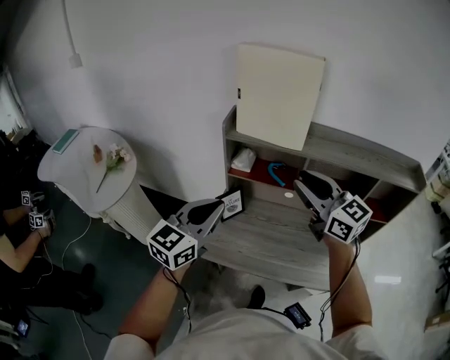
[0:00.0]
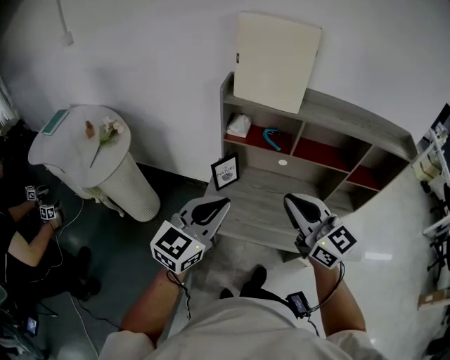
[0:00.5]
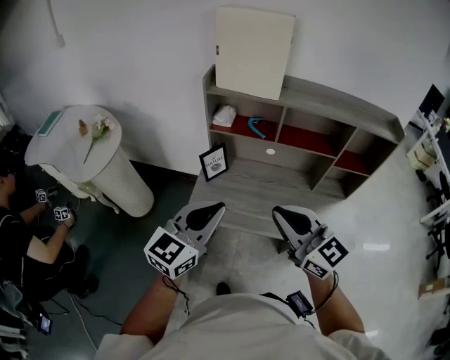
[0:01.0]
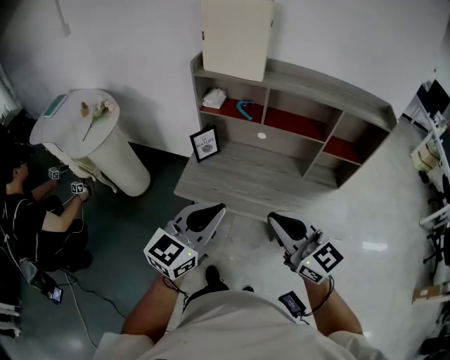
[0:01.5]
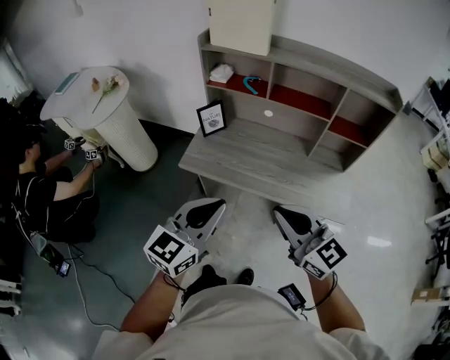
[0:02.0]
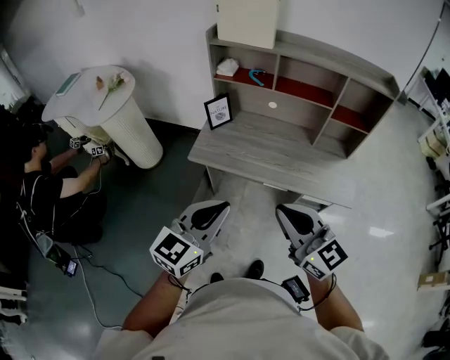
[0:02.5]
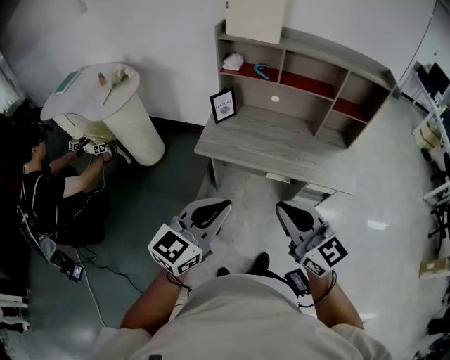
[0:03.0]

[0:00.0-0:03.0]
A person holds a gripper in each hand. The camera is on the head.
0:00.0 to 0:01.5: The left gripper heads backward and to the right, covering about 25 cm. The right gripper travels backward by roughly 30 cm.
0:01.5 to 0:03.0: Both grippers travel together backward and to the left, approximately 20 cm.

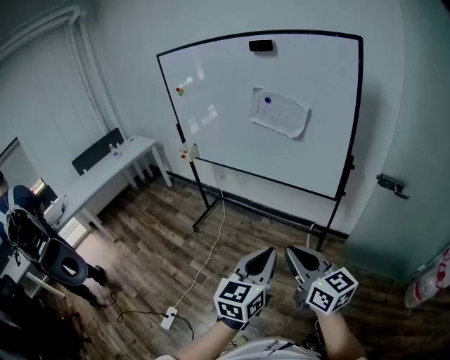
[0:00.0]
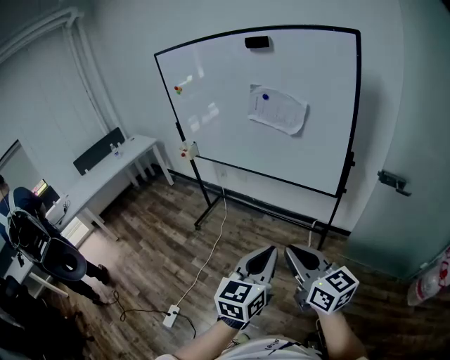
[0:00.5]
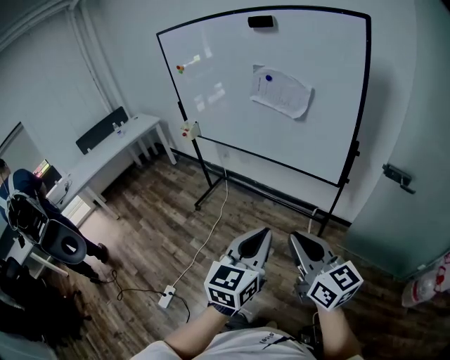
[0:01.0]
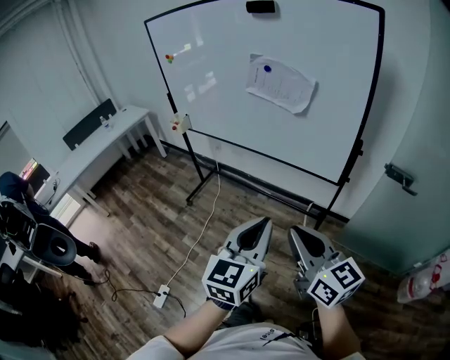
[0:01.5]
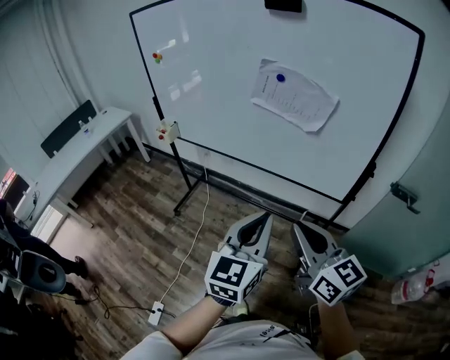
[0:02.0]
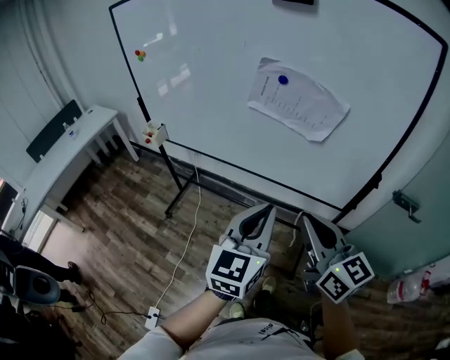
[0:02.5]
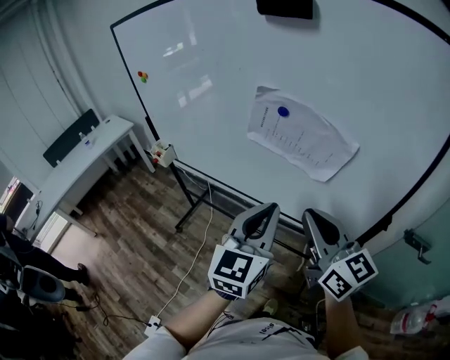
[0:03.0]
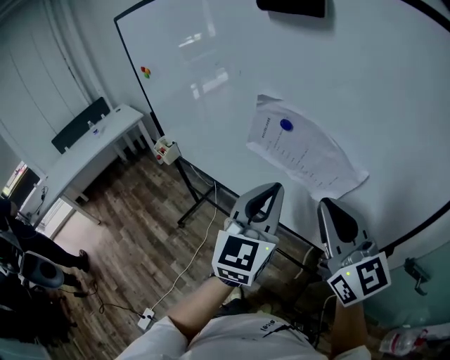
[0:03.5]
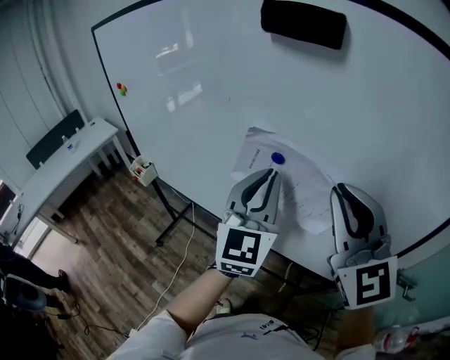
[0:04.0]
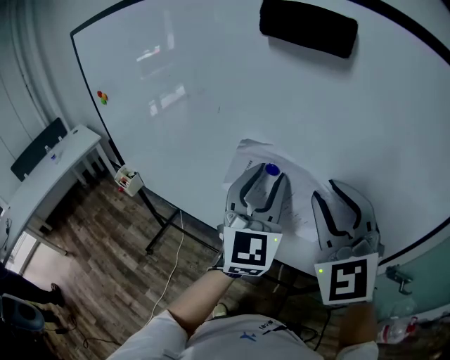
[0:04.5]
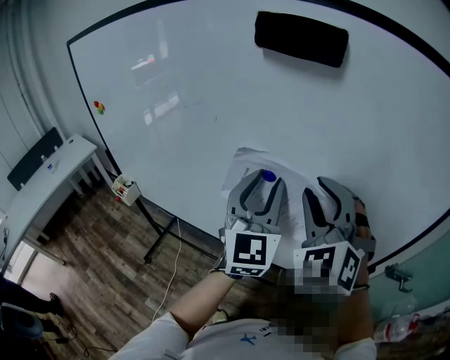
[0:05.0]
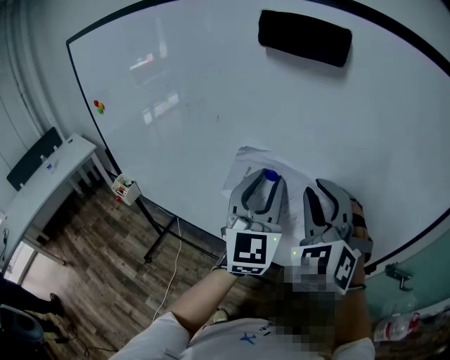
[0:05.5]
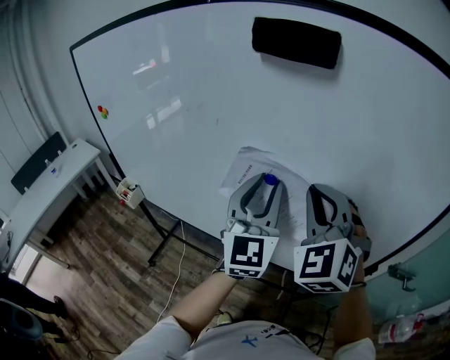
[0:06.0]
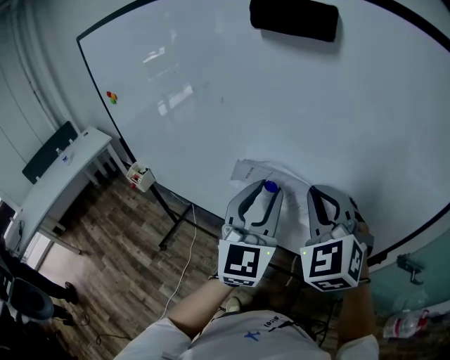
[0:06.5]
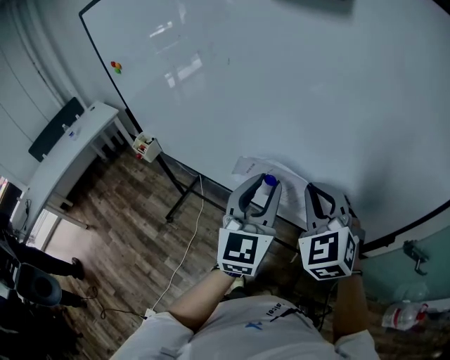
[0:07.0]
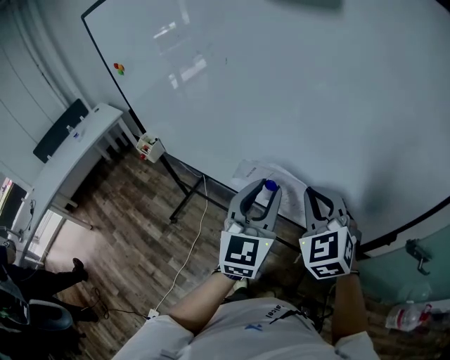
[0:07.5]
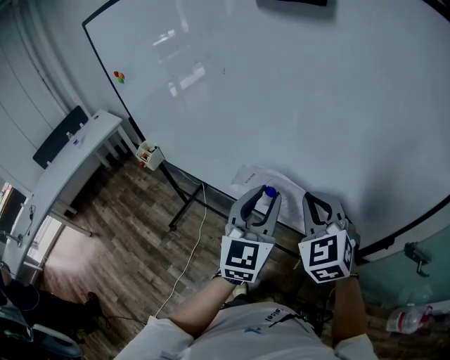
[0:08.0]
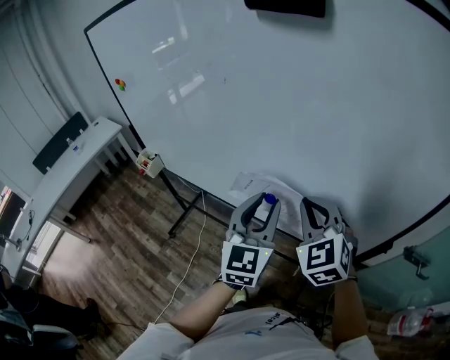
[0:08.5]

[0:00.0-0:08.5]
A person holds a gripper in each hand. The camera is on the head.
0:00.0 to 0:02.0: The two grippers go about 25 cm forward.
0:02.0 to 0:04.0: The left gripper shifts some 40 cm forward, and changes its angle by about 20 degrees; the right gripper travels forward and upward by approximately 40 cm, and rotates around the line of its fingers by some 40 degrees, counterclockwise from behind.
0:04.0 to 0:06.5: The left gripper opens, while the right gripper shifts about 10 cm downward, turns by approximately 30 degrees, and opens, then closes once more.
0:06.5 to 0:08.5: Both grippers travel together downward, roughly 10 cm.

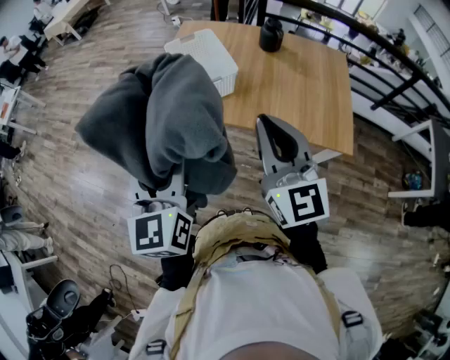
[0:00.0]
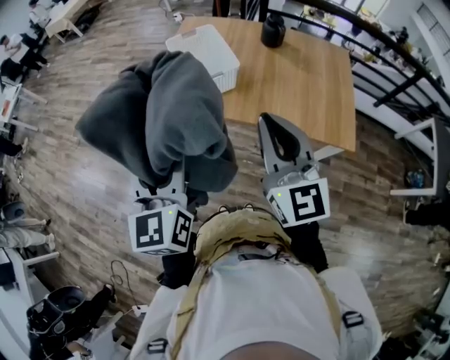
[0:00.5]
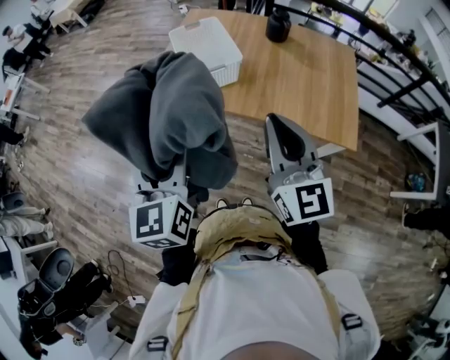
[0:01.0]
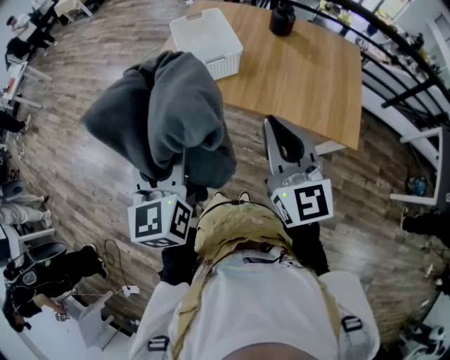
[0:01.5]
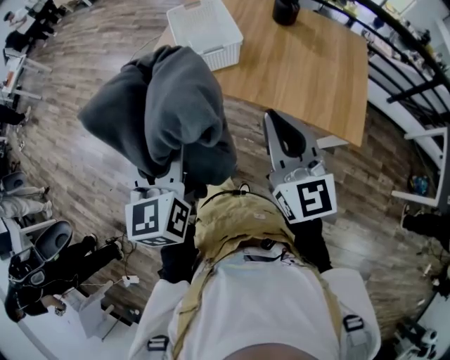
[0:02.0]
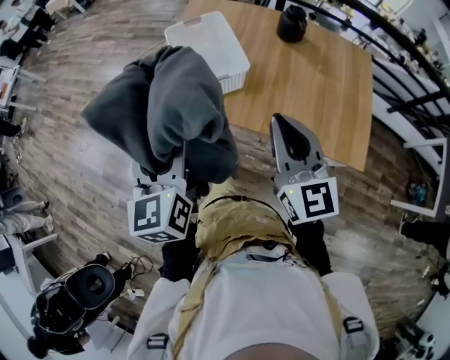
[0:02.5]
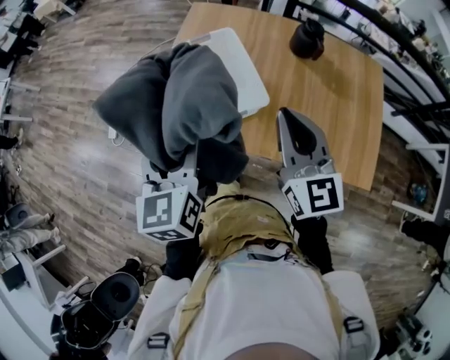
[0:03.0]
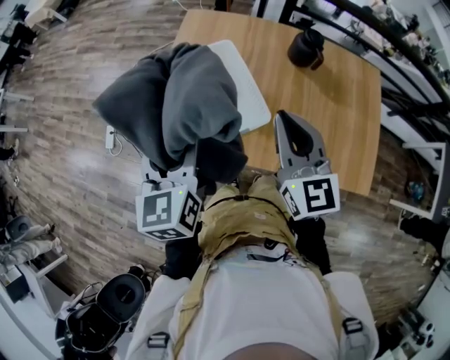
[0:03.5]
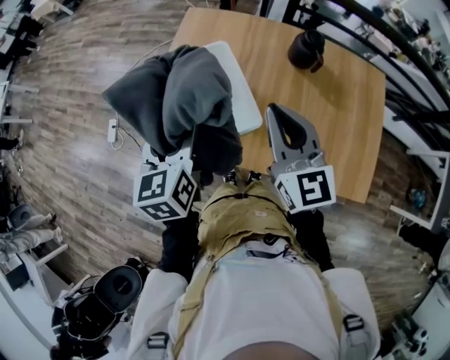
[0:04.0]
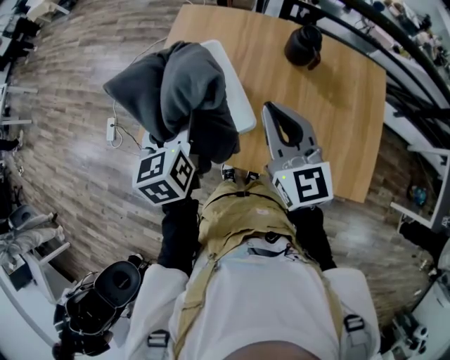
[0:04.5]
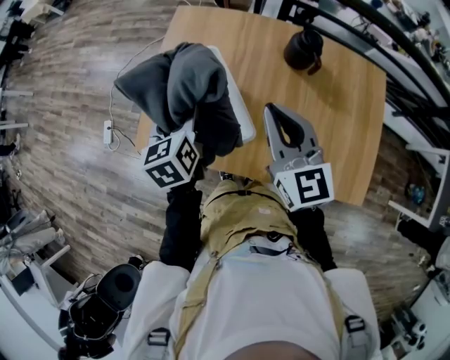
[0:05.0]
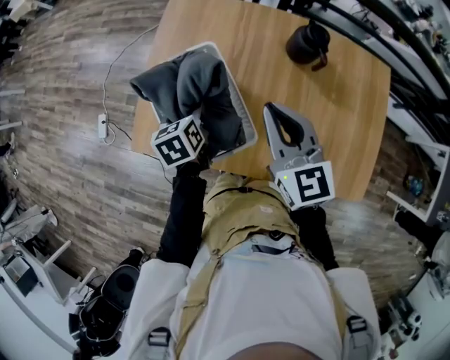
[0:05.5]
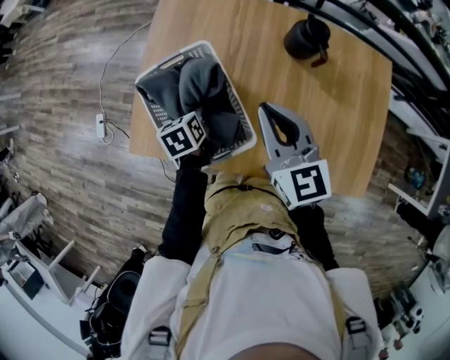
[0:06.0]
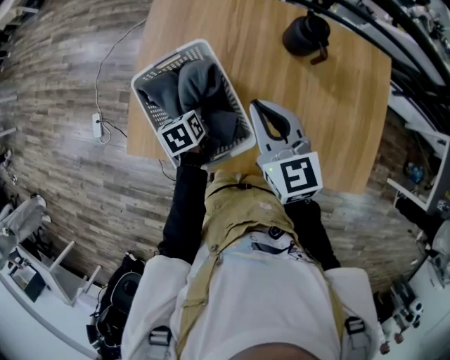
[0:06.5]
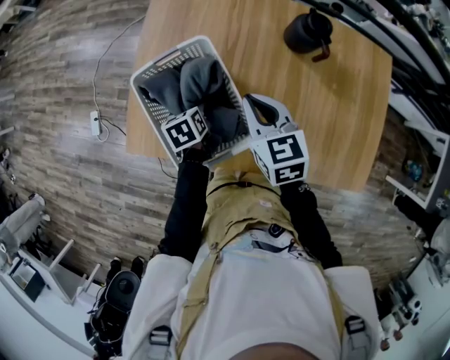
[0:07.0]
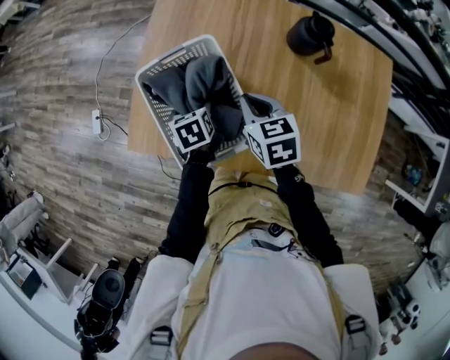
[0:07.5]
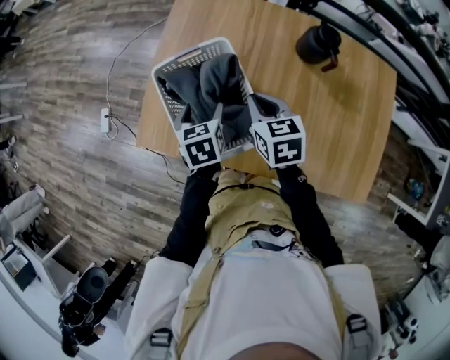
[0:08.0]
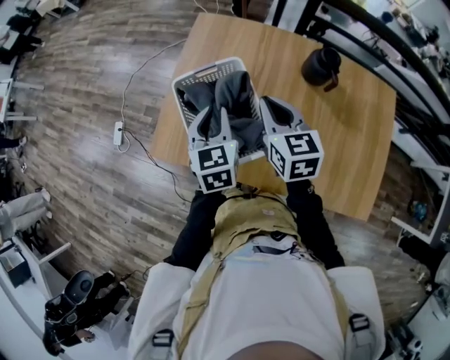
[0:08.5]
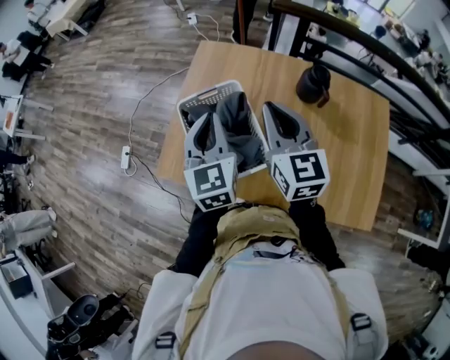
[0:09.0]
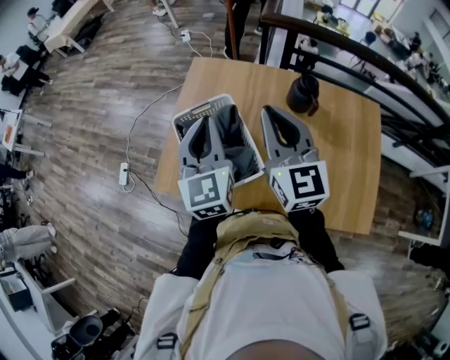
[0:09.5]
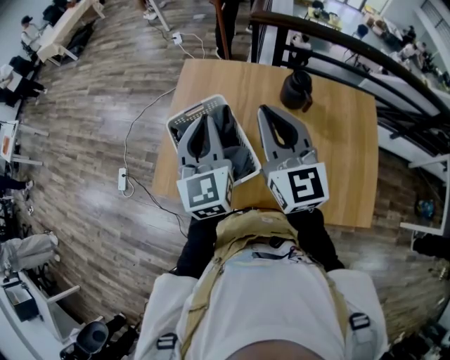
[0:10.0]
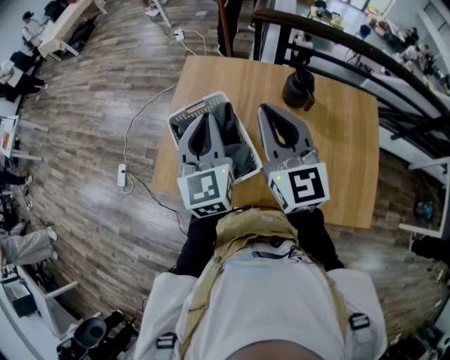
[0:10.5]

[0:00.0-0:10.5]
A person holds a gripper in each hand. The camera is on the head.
0:00.0 to 0:02.0: Both grippers move downward, approximately 5 cm.
0:02.0 to 0:04.0: Both grippers travel together forward, approximately 35 cm.
0:04.0 to 0:06.5: The right gripper goes about 15 cm downward and forward. Meanwhile the left gripper shifts about 30 cm downward and forward, and tilts its fingers roughly 30 degrees downward.
0:06.5 to 0:08.5: The right gripper reaches roughly 10 cm downward, then returns; the left gripper is displaced upward by some 20 cm, swivels about 30 degrees, and closes up.
0:08.5 to 0:10.5: The two grippers go some 15 cm upward. The left gripper rotates roughly 20 degrees. The right gripper swivels roughly 30 degrees.

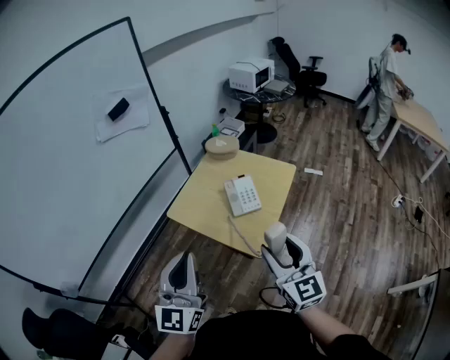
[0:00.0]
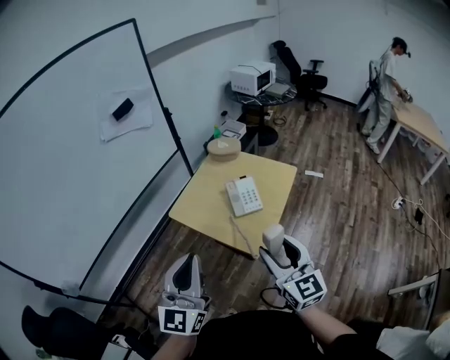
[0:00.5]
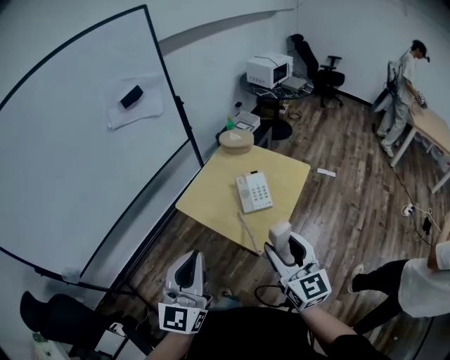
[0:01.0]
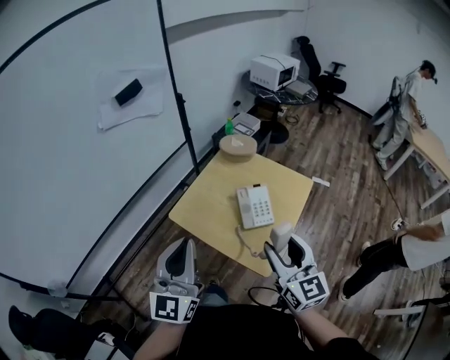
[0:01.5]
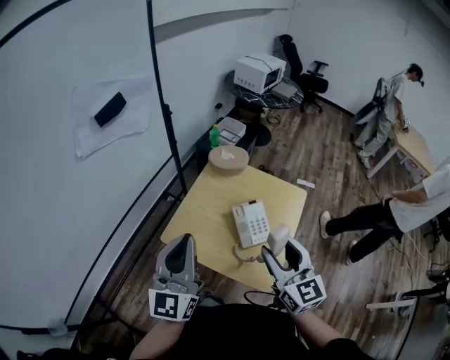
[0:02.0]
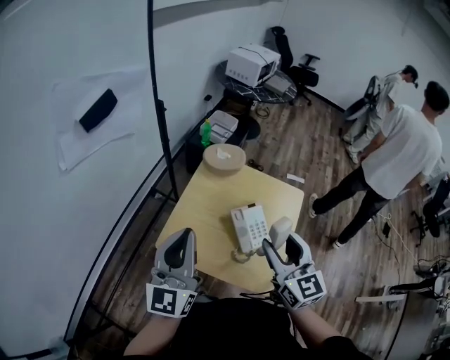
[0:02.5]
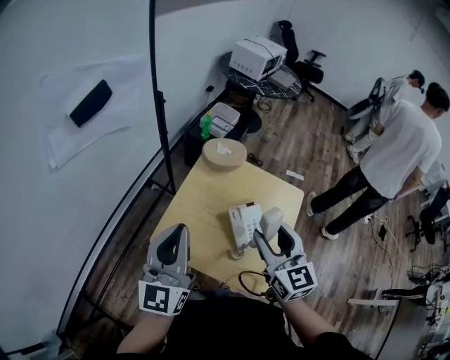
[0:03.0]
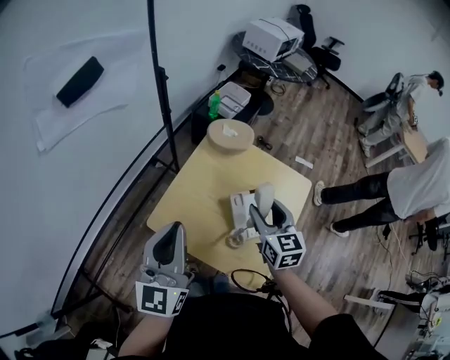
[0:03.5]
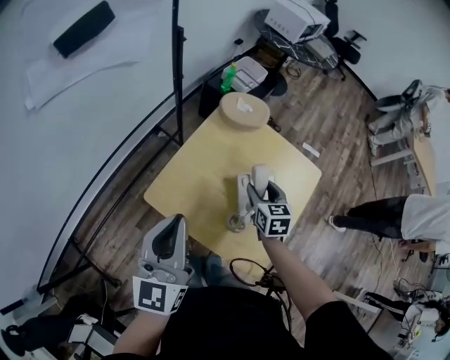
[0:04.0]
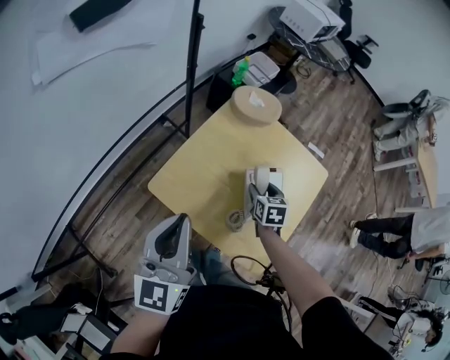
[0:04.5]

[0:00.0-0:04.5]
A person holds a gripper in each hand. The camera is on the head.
0:00.0 to 0:02.0: The left gripper moves forward, roughly 30 cm, while the right gripper heads forward and to the left, covering roughly 25 cm.
0:02.0 to 0:04.5: The right gripper travels downward and forward by about 40 cm, and tilts its fingers roughly 40 degrees downward. The left gripper travels downward and forward by approximately 15 cm.
